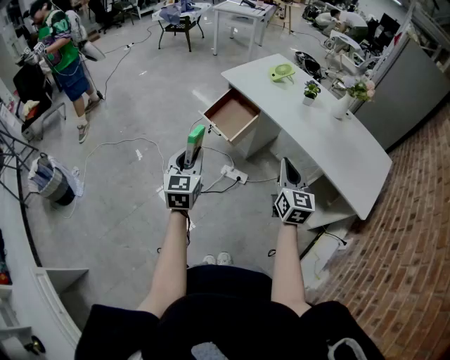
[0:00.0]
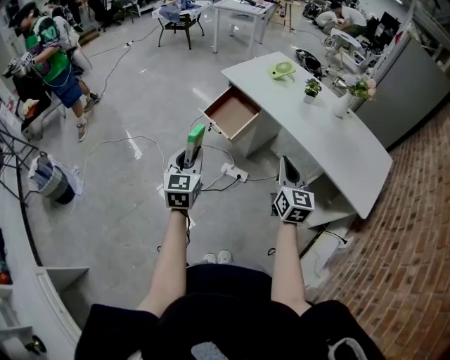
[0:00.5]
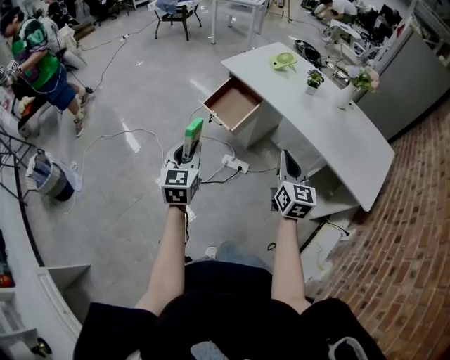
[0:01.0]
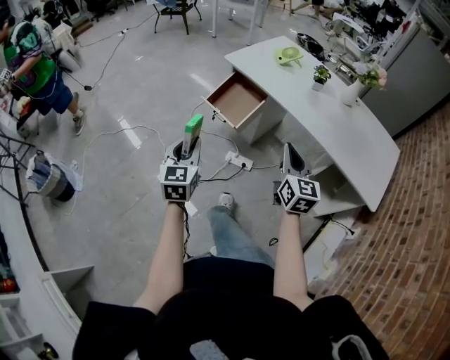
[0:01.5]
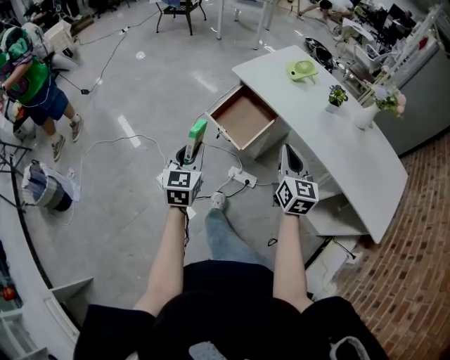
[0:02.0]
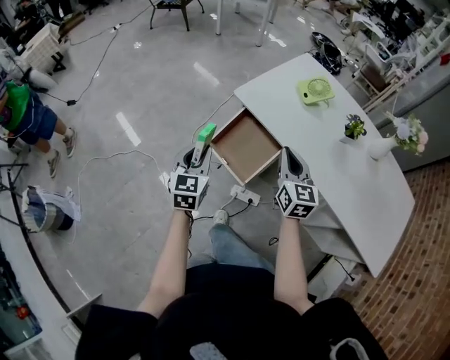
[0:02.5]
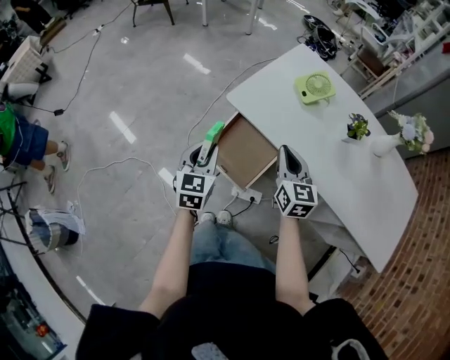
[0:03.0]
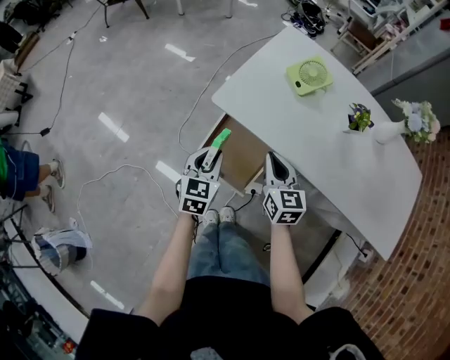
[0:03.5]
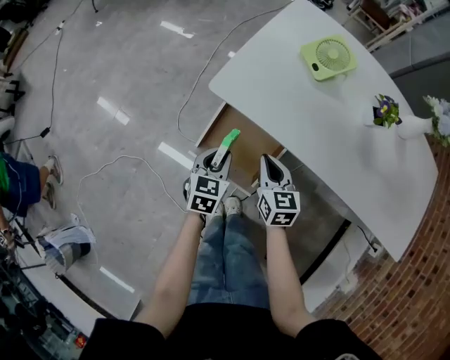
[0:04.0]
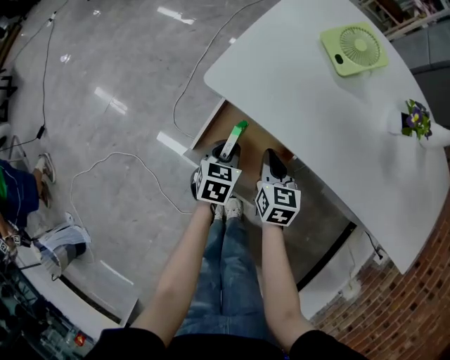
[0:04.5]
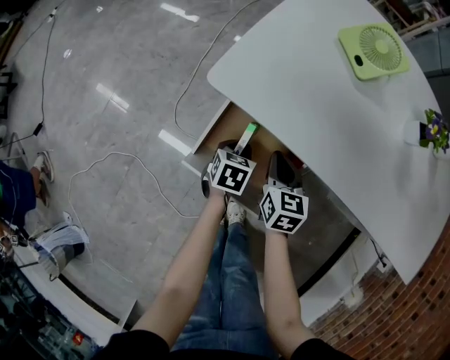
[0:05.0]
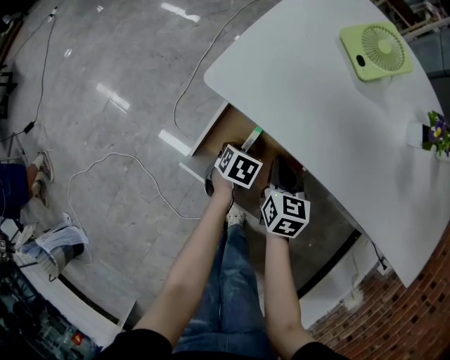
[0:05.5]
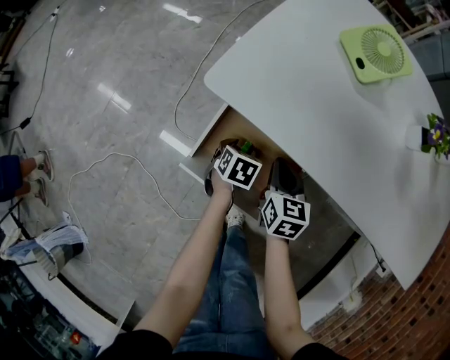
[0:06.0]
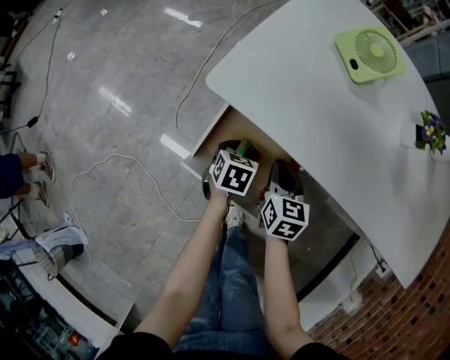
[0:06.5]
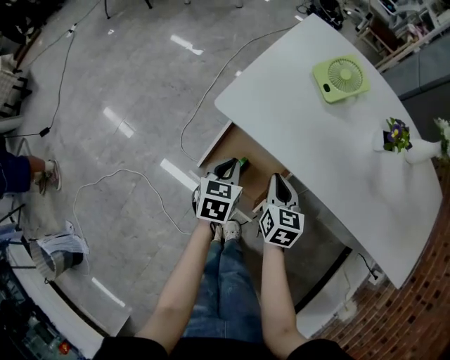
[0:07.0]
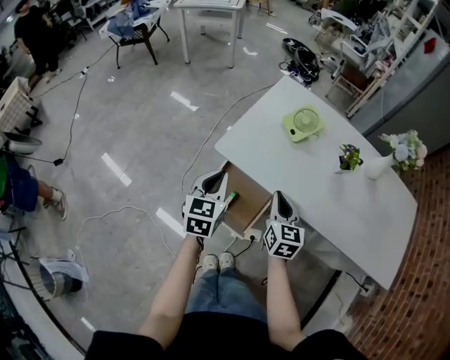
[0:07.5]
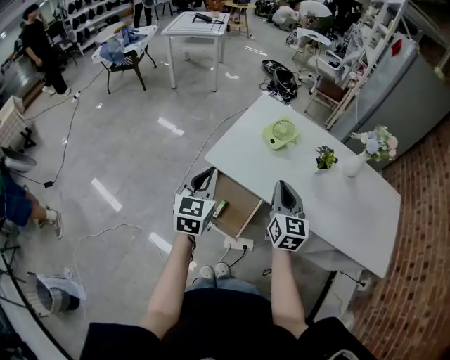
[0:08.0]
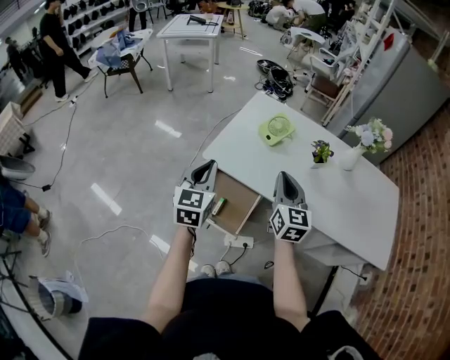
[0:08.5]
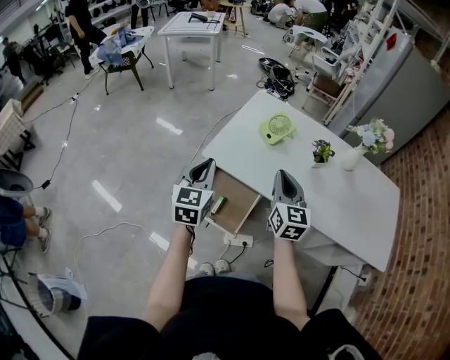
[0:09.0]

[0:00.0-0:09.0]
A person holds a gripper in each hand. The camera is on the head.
0:00.0 to 0:02.0: Both grippers move forward and to the left, some 20 cm.
0:02.0 to 0:04.5: The grippers both shift forward and downward by roughly 50 cm. The right gripper swivels some 30 degrees. Meanwhile the left gripper angles its fingers downward, by roughly 30 degrees.
0:04.5 to 0:07.0: Both grippers move upward, about 10 cm. The left gripper opens, then closes once more.
0:07.0 to 0:09.0: Both grippers move upward, roughly 35 cm. The left gripper tilts its fingers some 30 degrees upward; the right gripper turns by about 30 degrees.

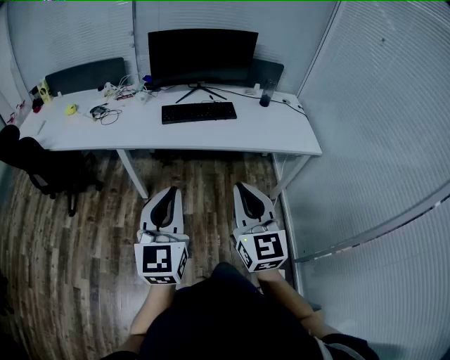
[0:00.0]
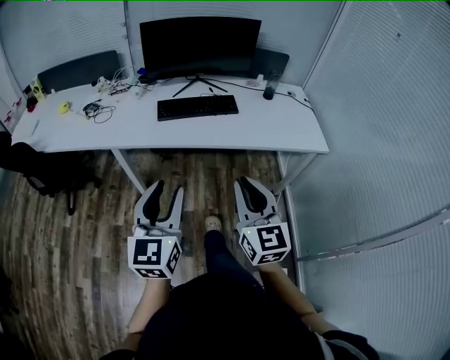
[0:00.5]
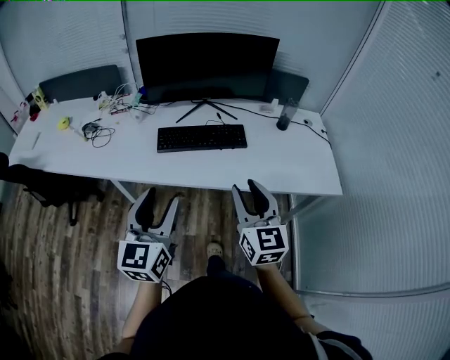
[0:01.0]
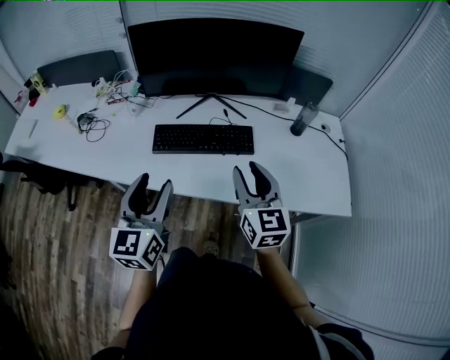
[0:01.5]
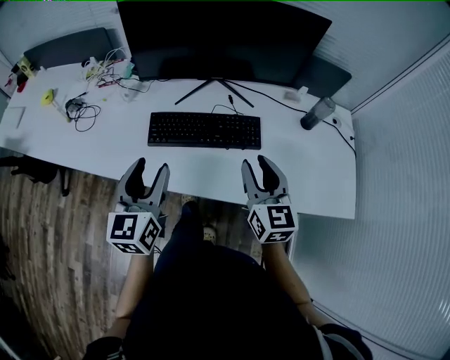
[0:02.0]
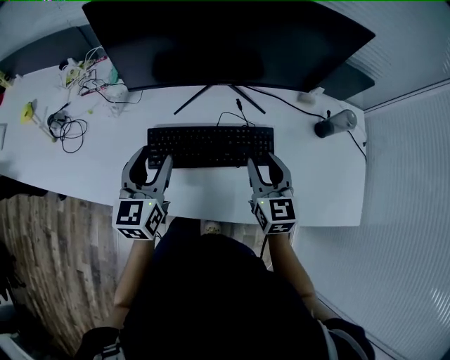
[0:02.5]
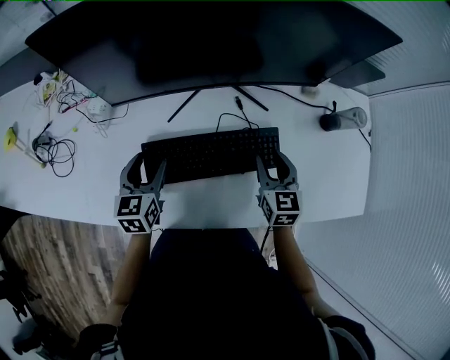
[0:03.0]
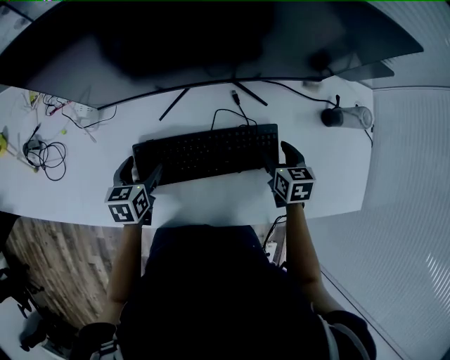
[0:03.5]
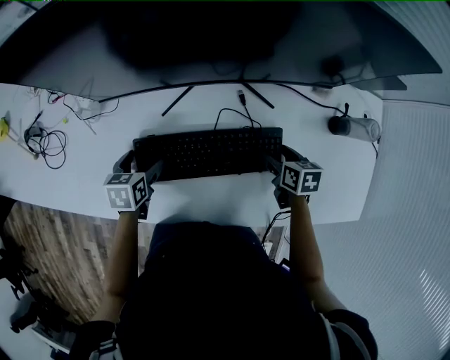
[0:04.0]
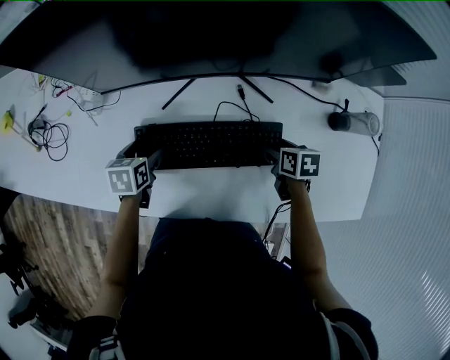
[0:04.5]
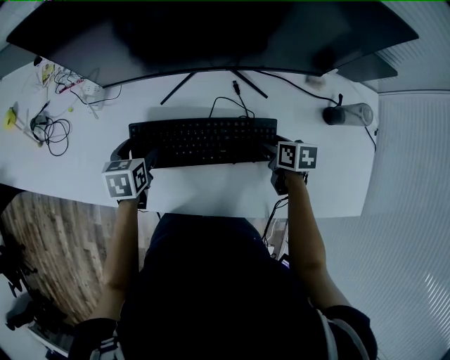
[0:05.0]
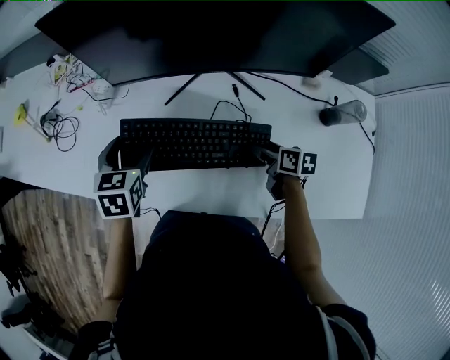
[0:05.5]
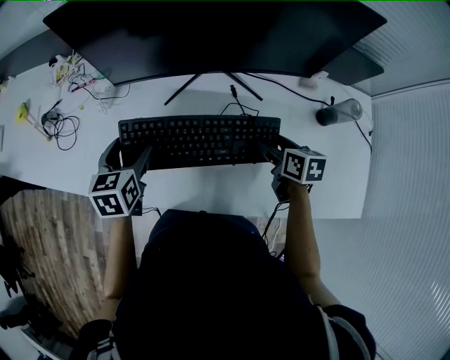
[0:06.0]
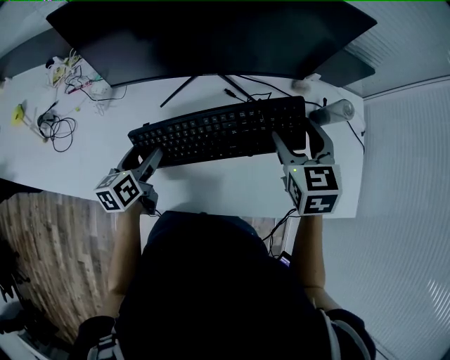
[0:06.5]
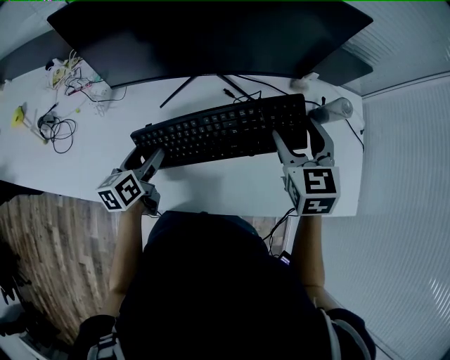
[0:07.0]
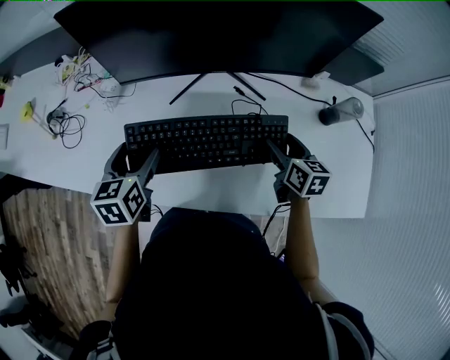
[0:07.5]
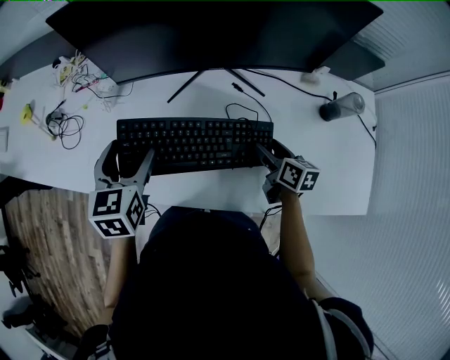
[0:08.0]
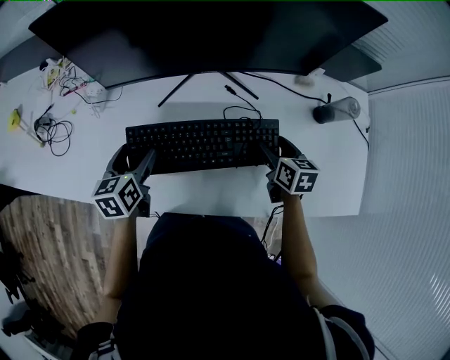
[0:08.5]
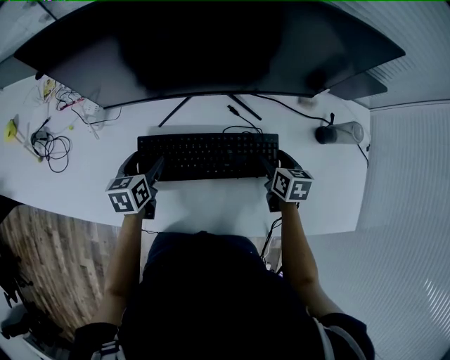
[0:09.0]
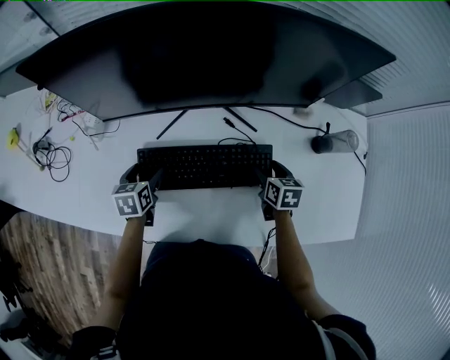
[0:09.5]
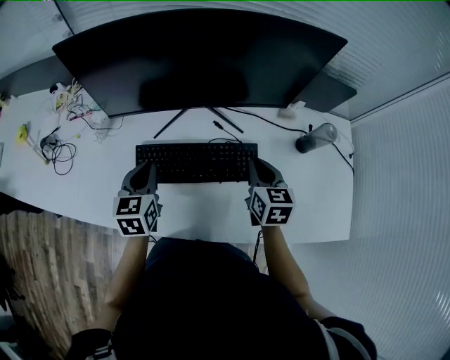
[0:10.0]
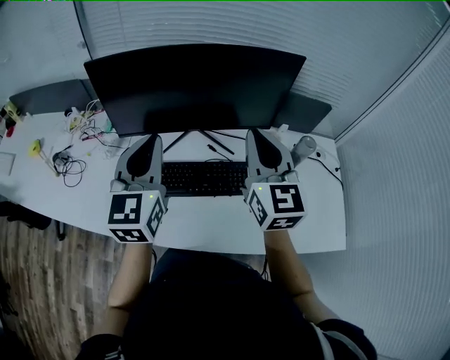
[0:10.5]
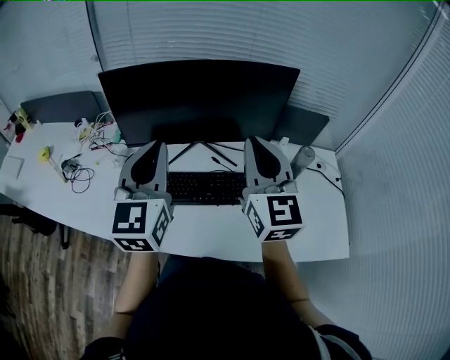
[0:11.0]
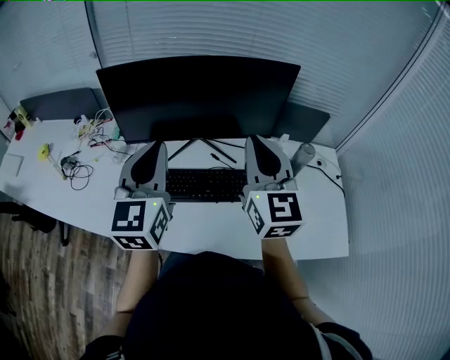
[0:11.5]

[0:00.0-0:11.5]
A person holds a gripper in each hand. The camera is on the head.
0:00.0 to 0:02.0: Both grippers are carried forward, some 40 cm. The left gripper opens up. Meanwhile the right gripper opens up.
0:02.0 to 0:04.0: Both grippers move downward and forward, about 30 cm. The right gripper points its fingers some 50 degrees further downward, and opens up. The left gripper points its fingers approximately 50 degrees further downward, and opens its fingers.
0:04.0 to 0:06.0: The left gripper heads upward, covering about 15 cm, and changes its angle by roughly 20 degrees. The right gripper moves upward, about 10 cm.
0:06.0 to 0:07.5: The right gripper reaches about 15 cm upward, then returns.
0:07.5 to 0:09.5: The left gripper heads downward, covering roughly 15 cm, while the right gripper moves downward, some 10 cm.
0:09.5 to 0:11.5: Both grippers travel together upward, some 40 cm. The left gripper tips its fingers upward by about 50 degrees, and closes up, while the right gripper tilts its fingers roughly 60 degrees upward, and closes up.

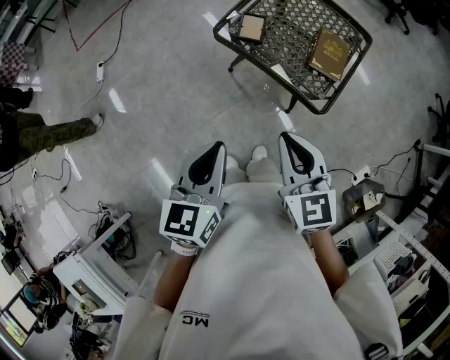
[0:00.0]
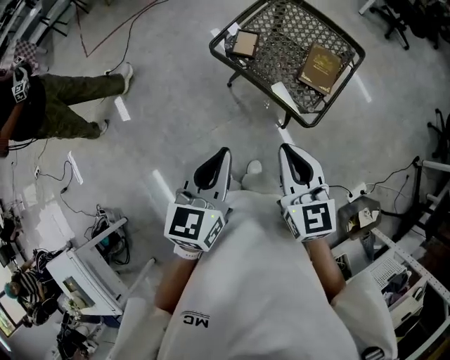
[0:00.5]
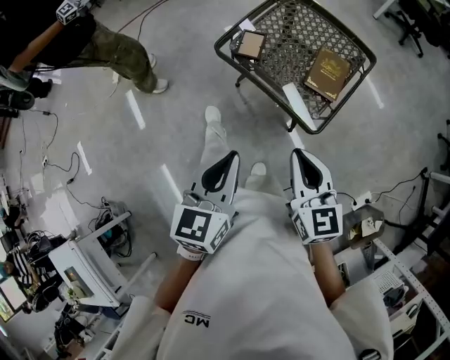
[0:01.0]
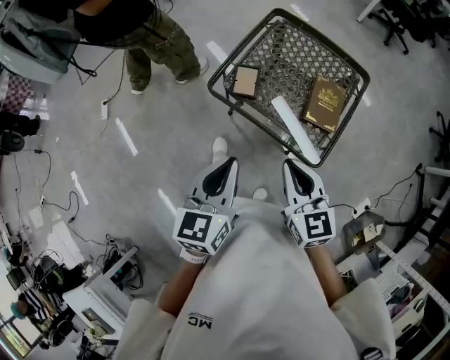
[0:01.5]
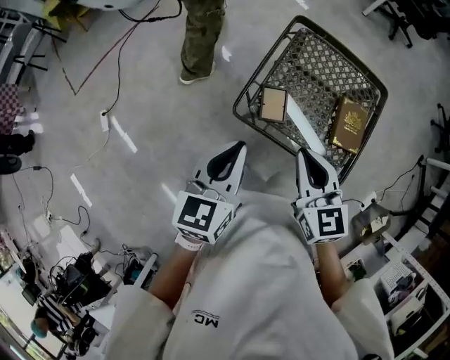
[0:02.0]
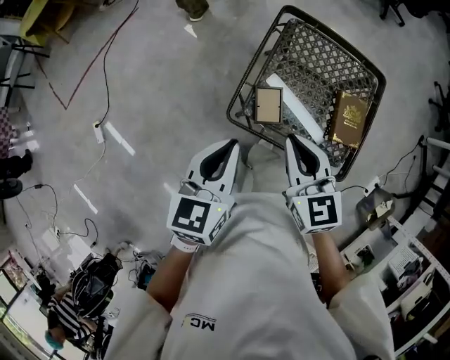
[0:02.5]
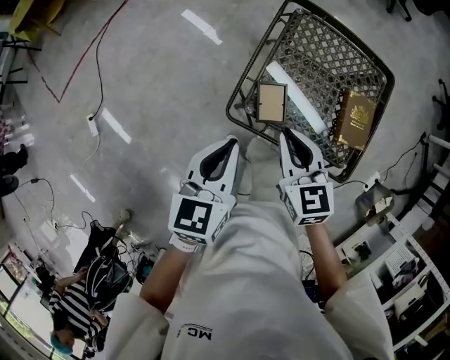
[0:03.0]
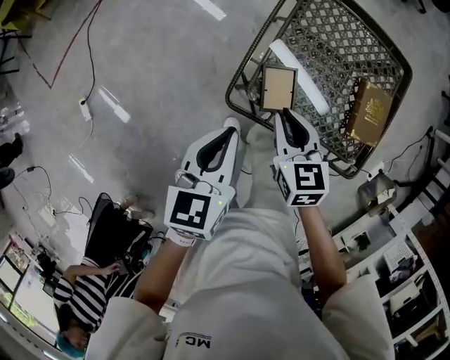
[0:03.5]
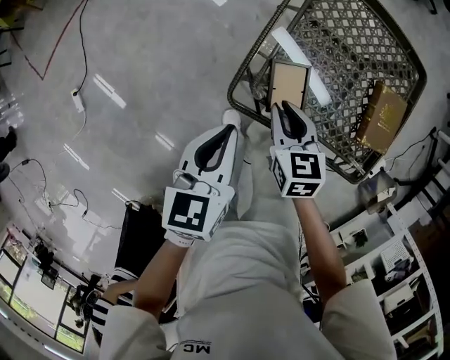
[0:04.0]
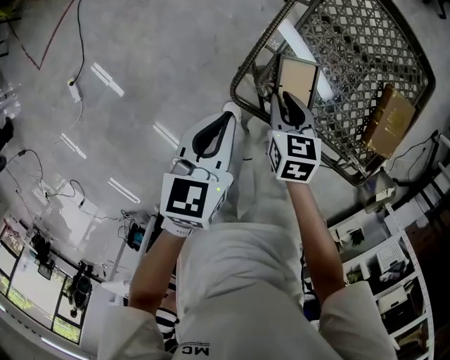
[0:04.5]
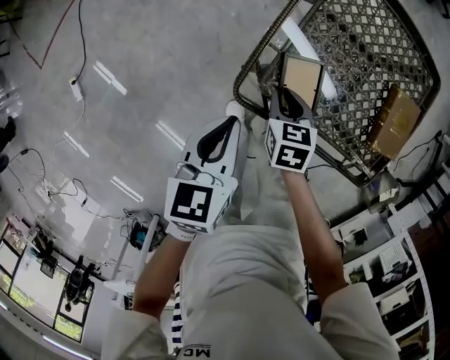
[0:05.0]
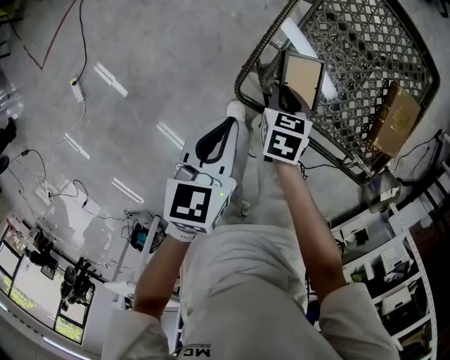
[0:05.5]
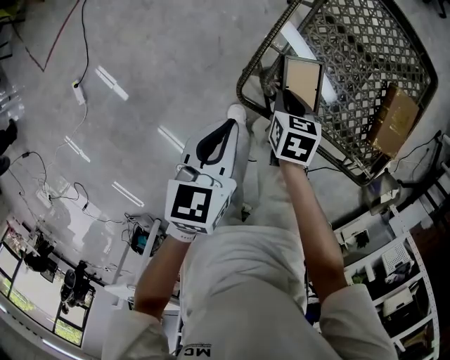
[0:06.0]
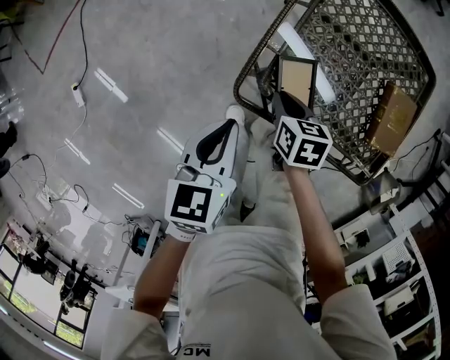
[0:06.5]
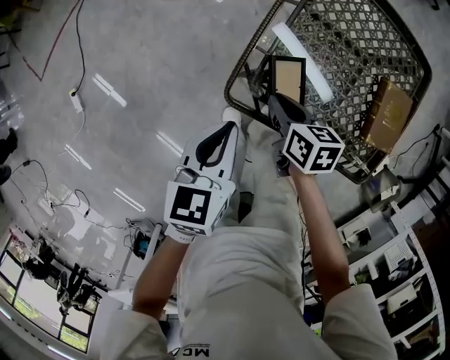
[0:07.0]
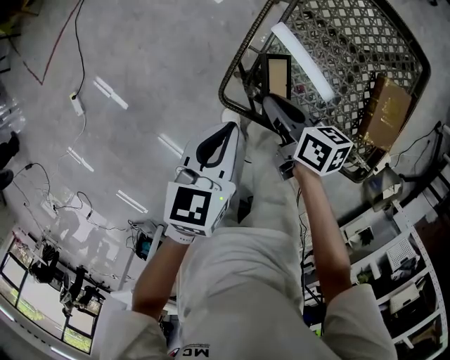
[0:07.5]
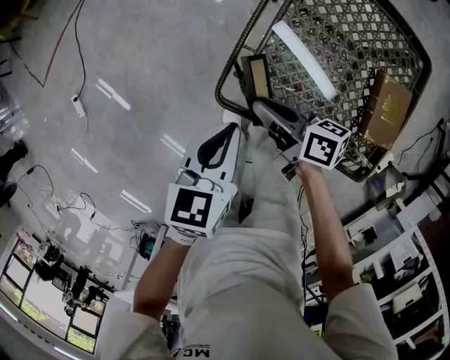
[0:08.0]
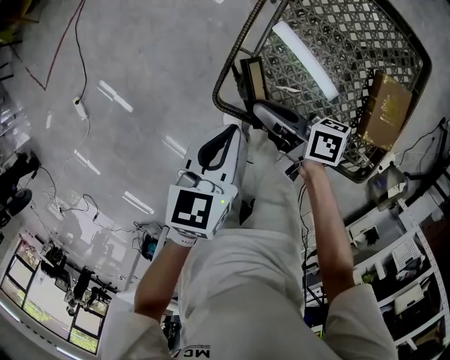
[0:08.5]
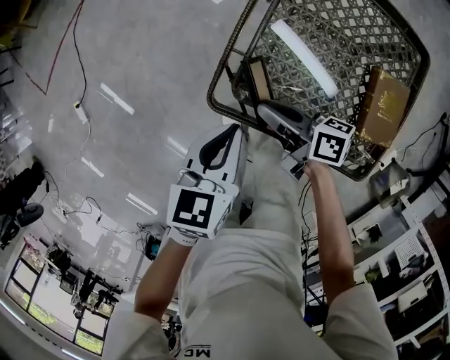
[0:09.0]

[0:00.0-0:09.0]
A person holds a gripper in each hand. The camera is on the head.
0:00.0 to 0:02.0: The two grippers go some 30 cm forward.
0:02.0 to 0:04.5: Both grippers move downward, about 30 cm. The right gripper rotates about 30 degrees.
0:04.5 to 0:07.0: The right gripper rotates some 20 degrees.
0:07.0 to 0:09.0: The left gripper moves to the right, approximately 5 cm; the right gripper tilts its fingers approximately 30 degrees upward.
